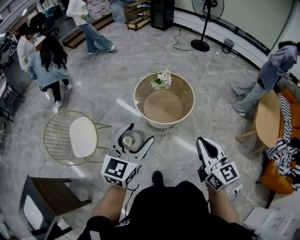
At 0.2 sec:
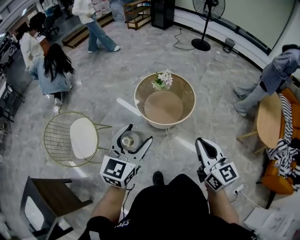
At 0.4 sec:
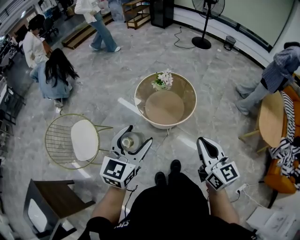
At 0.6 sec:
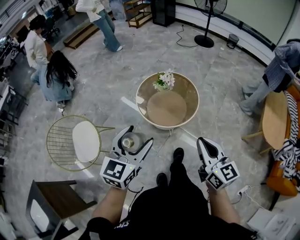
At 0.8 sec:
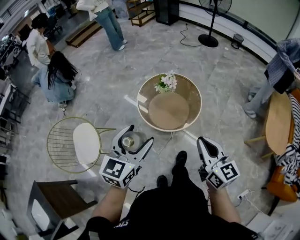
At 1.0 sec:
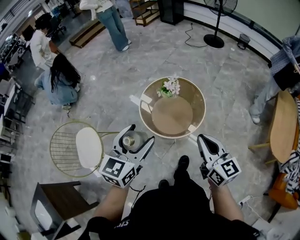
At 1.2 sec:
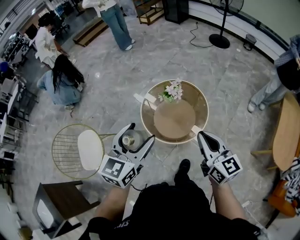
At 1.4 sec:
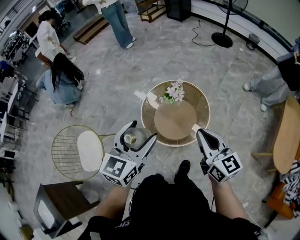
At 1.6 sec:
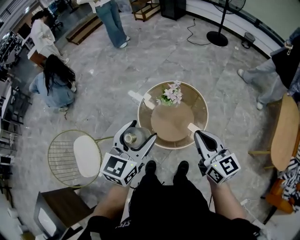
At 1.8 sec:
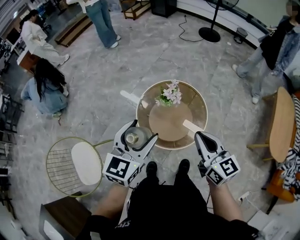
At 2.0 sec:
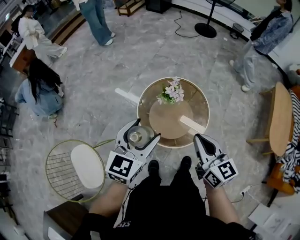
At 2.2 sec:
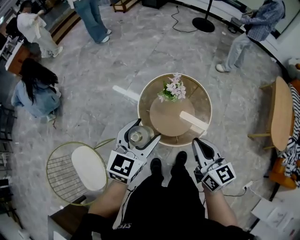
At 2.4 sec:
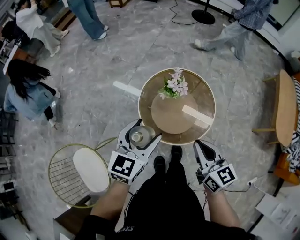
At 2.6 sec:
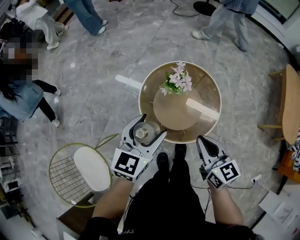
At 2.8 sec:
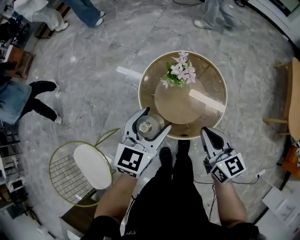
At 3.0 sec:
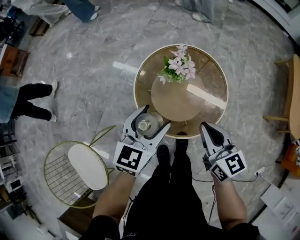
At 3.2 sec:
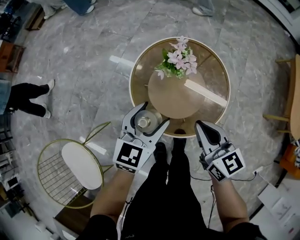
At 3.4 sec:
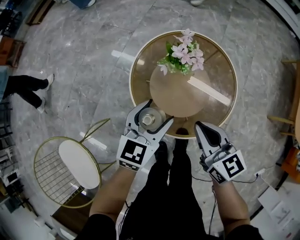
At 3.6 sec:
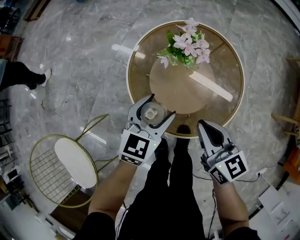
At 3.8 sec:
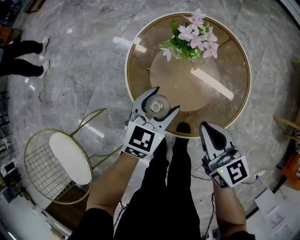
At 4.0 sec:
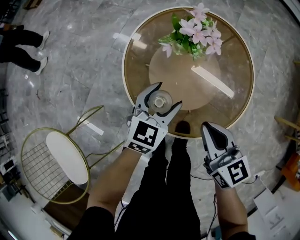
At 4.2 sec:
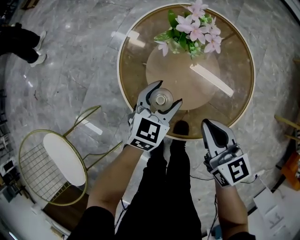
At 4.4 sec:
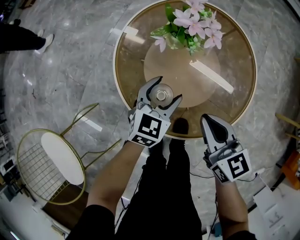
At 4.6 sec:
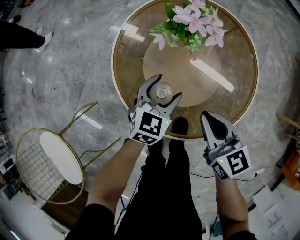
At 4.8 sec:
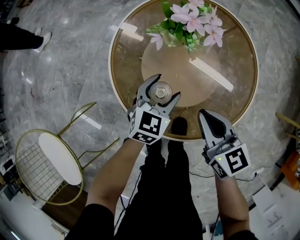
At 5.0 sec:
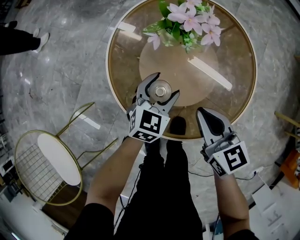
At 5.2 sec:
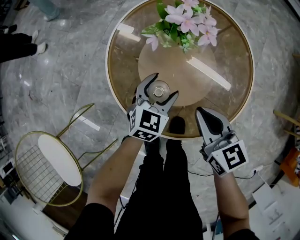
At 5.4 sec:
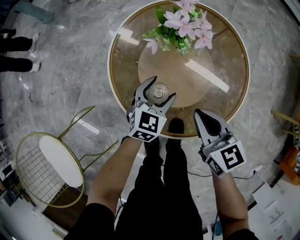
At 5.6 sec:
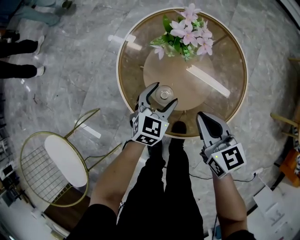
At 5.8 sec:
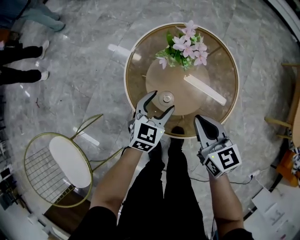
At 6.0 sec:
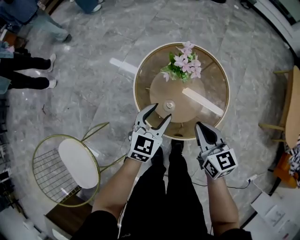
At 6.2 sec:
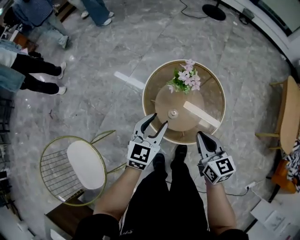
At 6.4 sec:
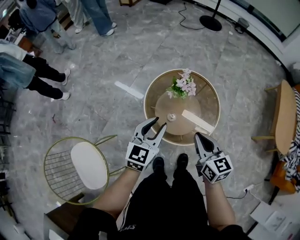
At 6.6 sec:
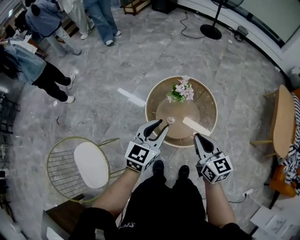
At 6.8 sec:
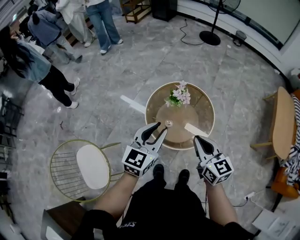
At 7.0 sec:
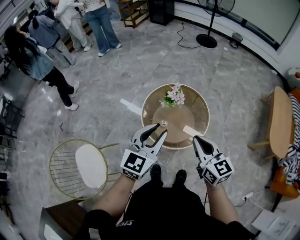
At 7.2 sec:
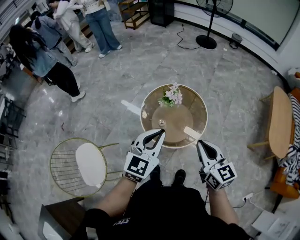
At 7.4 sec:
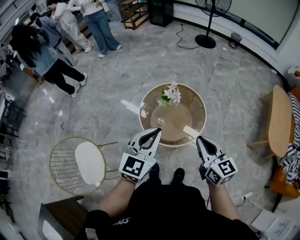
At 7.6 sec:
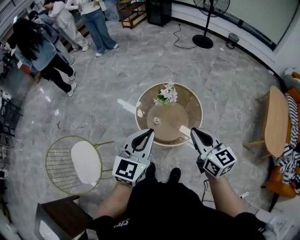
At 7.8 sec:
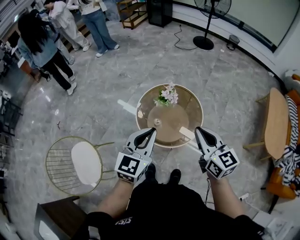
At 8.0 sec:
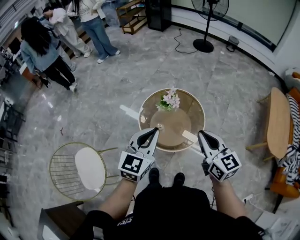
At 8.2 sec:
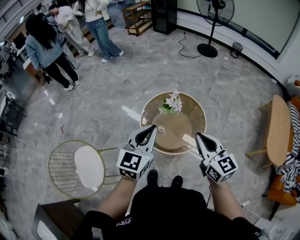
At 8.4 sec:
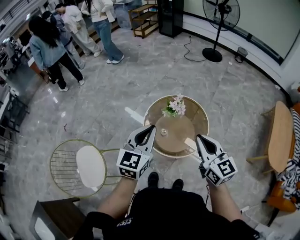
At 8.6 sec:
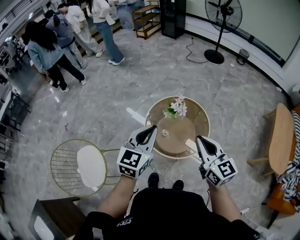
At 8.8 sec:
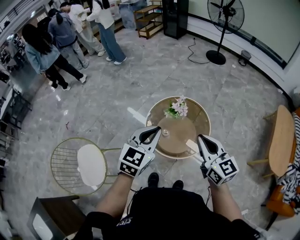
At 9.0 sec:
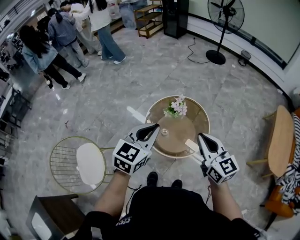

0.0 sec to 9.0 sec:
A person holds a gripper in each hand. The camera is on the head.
0.0 sec to 1.6 sec: The grippers both shift forward by approximately 35 cm.
1.6 sec to 3.0 sec: The left gripper heads downward and forward, covering approximately 30 cm. Meanwhile the right gripper goes some 25 cm downward and to the left.
3.0 sec to 4.4 sec: The two grippers go approximately 30 cm downward.
4.4 sec to 6.0 sec: Both grippers move upward, about 20 cm.
6.0 sec to 7.6 sec: Both grippers move upward and backward, some 40 cm. The left gripper closes its fingers.
7.6 sec to 9.0 sec: The left gripper moves roughly 5 cm.

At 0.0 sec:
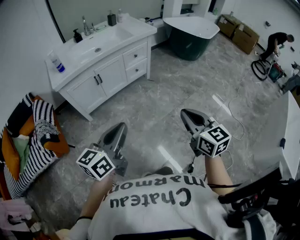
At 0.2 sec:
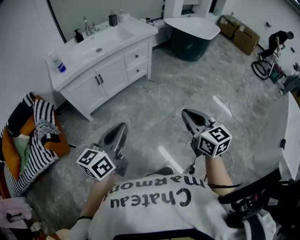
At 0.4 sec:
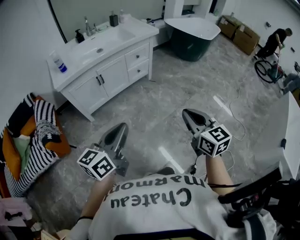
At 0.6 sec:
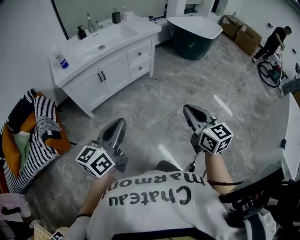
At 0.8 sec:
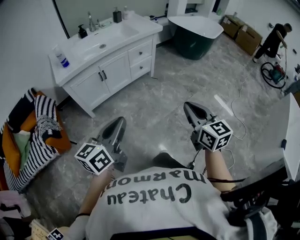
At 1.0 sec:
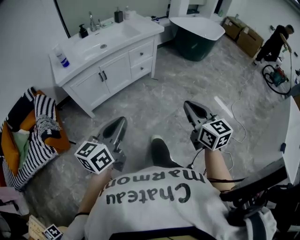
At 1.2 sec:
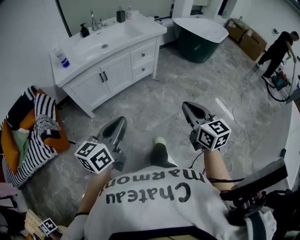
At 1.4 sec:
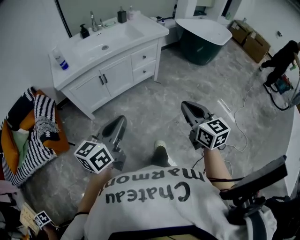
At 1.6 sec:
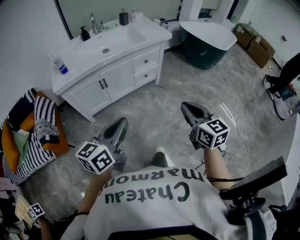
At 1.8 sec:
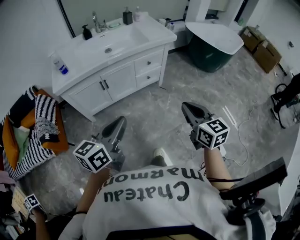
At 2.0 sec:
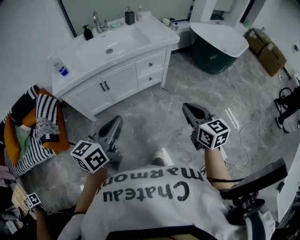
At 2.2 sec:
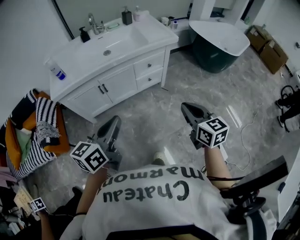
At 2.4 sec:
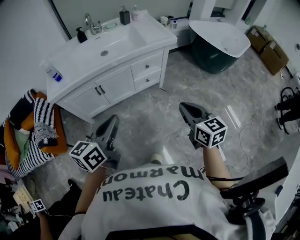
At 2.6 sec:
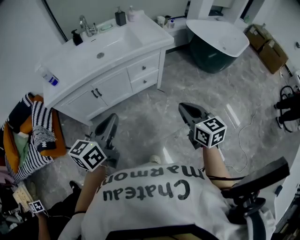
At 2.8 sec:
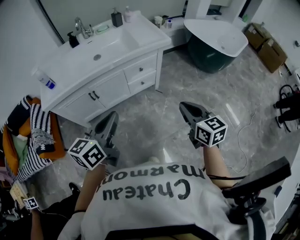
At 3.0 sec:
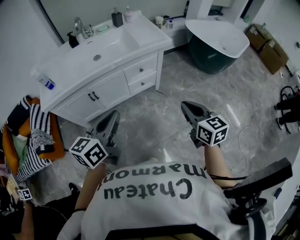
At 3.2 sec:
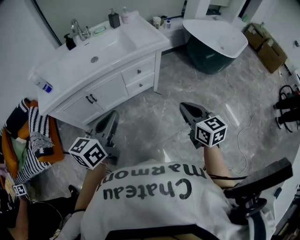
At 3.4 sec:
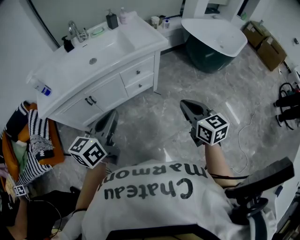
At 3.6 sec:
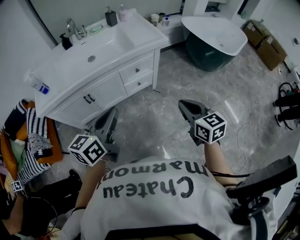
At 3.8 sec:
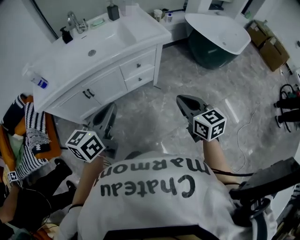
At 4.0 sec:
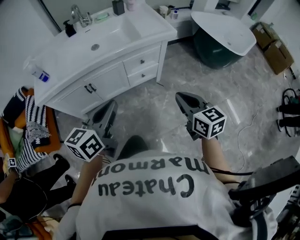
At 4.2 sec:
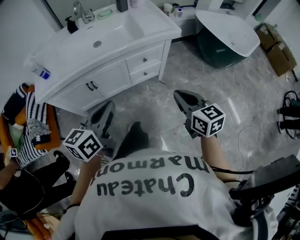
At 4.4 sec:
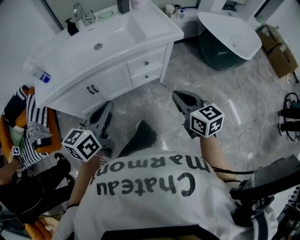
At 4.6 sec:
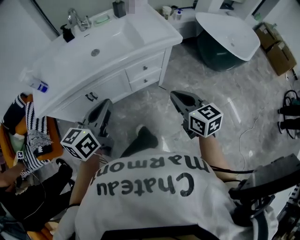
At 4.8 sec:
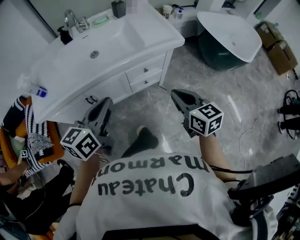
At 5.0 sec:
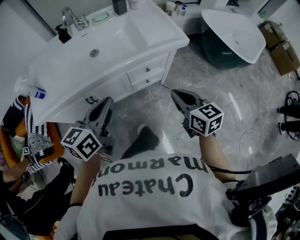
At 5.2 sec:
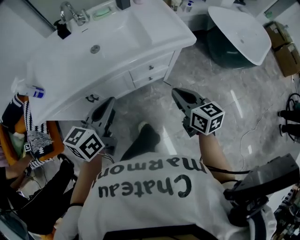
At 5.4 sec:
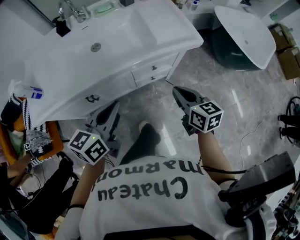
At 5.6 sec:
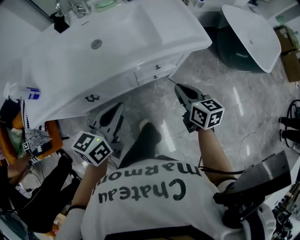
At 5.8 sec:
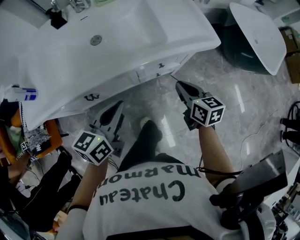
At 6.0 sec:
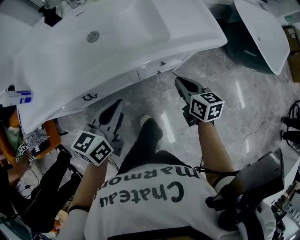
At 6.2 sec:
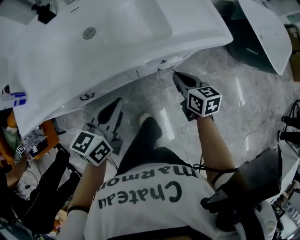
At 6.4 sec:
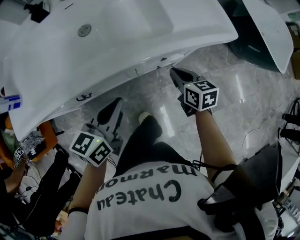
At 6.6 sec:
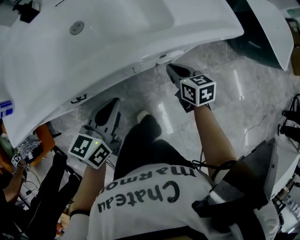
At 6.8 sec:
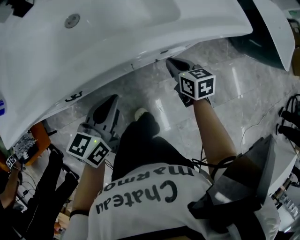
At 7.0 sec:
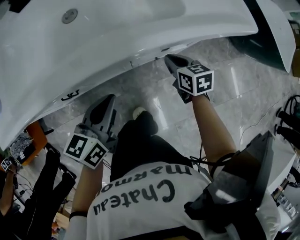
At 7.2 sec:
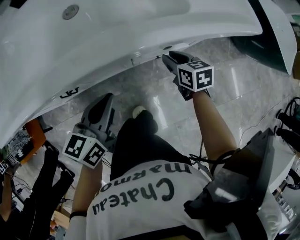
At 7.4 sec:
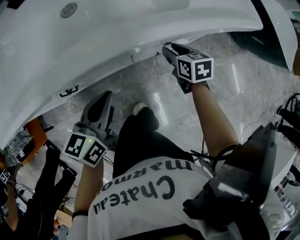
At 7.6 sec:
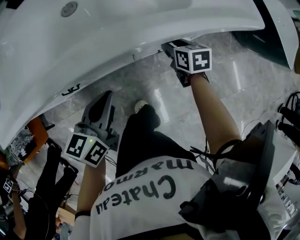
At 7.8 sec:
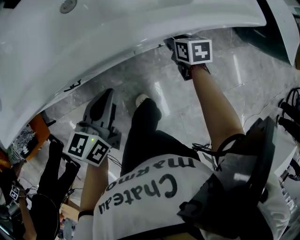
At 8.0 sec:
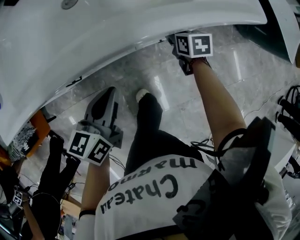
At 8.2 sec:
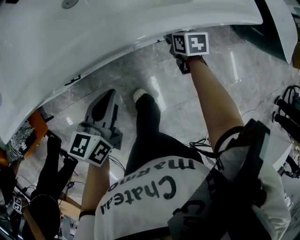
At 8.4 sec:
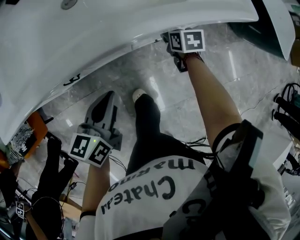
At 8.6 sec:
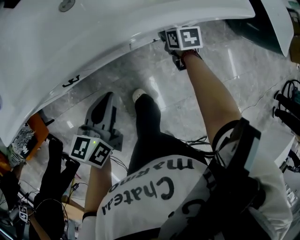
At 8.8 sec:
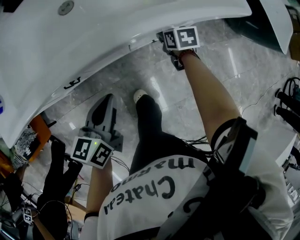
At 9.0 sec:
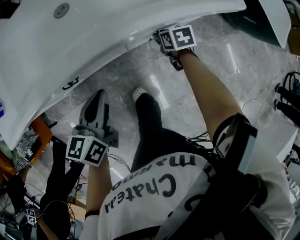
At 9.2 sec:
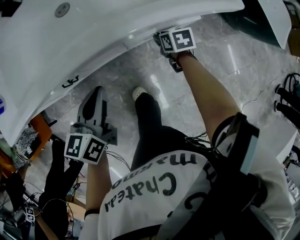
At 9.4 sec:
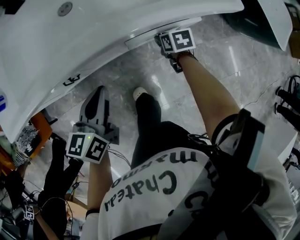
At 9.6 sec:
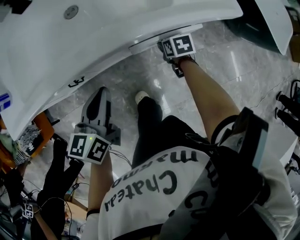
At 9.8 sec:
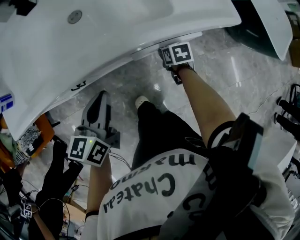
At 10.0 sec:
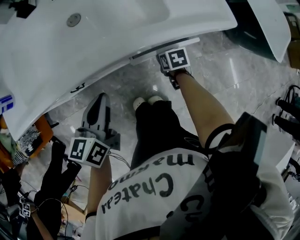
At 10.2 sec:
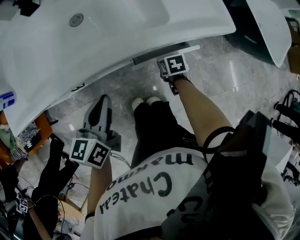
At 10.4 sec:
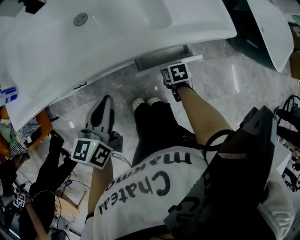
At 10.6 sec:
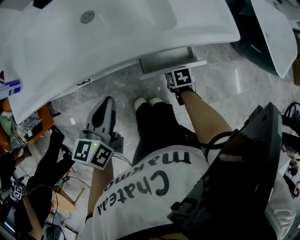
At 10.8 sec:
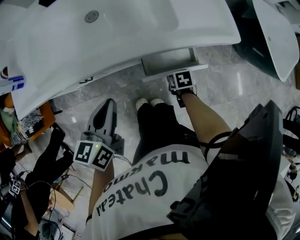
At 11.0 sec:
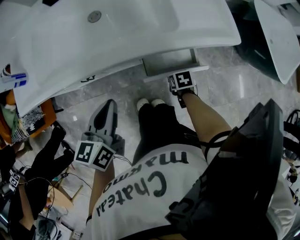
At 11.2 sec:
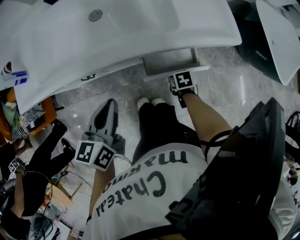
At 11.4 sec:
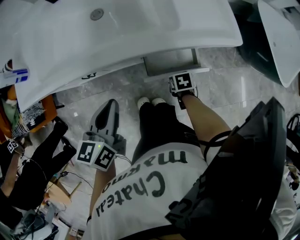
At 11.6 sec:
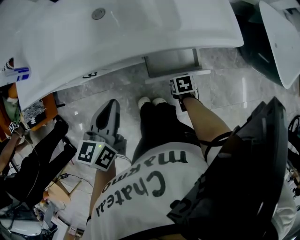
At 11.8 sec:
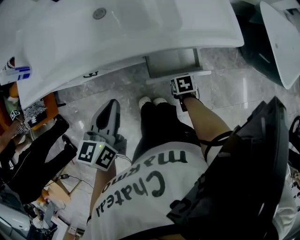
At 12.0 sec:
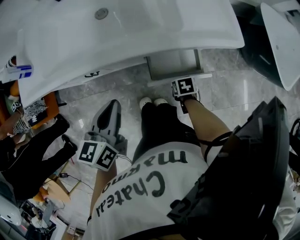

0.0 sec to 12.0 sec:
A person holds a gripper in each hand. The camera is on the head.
0.0 sec to 1.6 sec: The two grippers go some 15 cm forward.
1.6 sec to 3.0 sec: The right gripper travels forward and to the right by approximately 25 cm, while the left gripper heads forward, covering some 20 cm.
3.0 sec to 4.4 sec: The right gripper is displaced forward and to the left by approximately 10 cm. The left gripper heads forward, covering about 10 cm.
4.4 sec to 6.0 sec: Both grippers travel together forward and downward, some 30 cm.
6.0 sec to 7.6 sec: The right gripper is displaced downward and forward by approximately 20 cm, and opens. Meanwhile the left gripper heads downward, covering some 15 cm.
7.6 sec to 9.0 sec: The left gripper changes place by approximately 5 cm.
9.0 sec to 10.4 sec: The left gripper moves upward, roughly 5 cm, while the right gripper is displaced backward by approximately 10 cm.
10.4 sec to 12.0 sec: The right gripper goes about 5 cm backward.

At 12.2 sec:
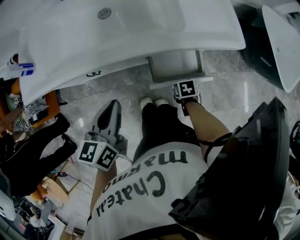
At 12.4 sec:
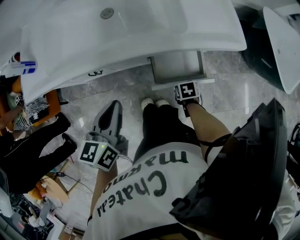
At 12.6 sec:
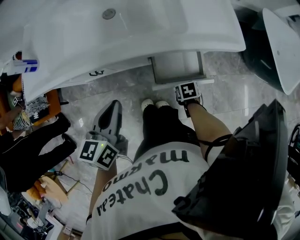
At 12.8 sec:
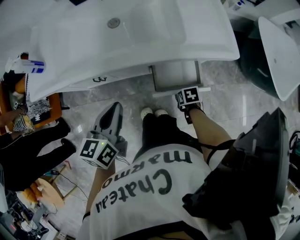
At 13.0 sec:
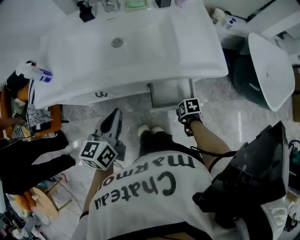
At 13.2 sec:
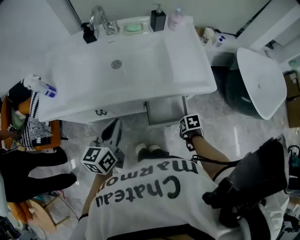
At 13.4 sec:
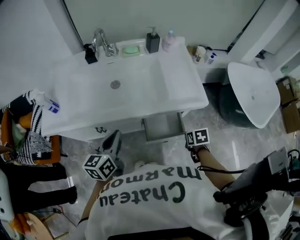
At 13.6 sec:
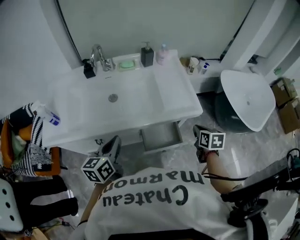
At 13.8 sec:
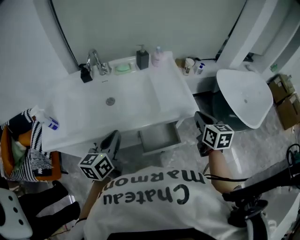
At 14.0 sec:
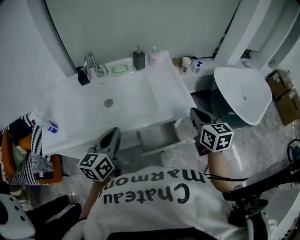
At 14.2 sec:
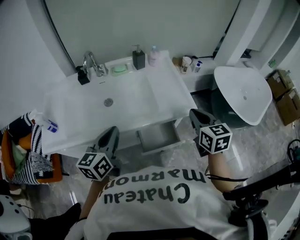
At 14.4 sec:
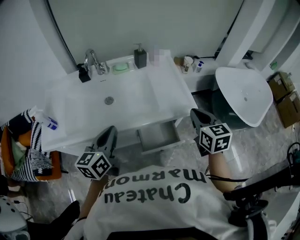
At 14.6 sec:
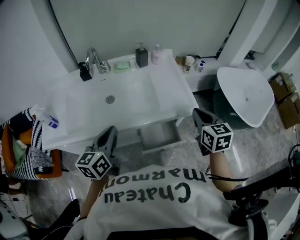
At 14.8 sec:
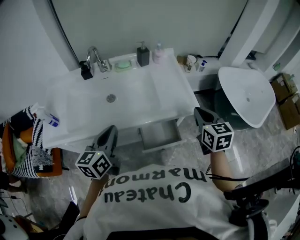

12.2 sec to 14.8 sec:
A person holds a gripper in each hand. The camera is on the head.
12.2 sec to 13.4 sec: The left gripper goes approximately 5 cm upward. The right gripper travels upward by some 20 cm, and closes.
13.4 sec to 14.8 sec: The right gripper travels upward by approximately 25 cm, and tilts its fingers some 40 degrees upward. Meanwhile the left gripper goes some 10 cm upward.
